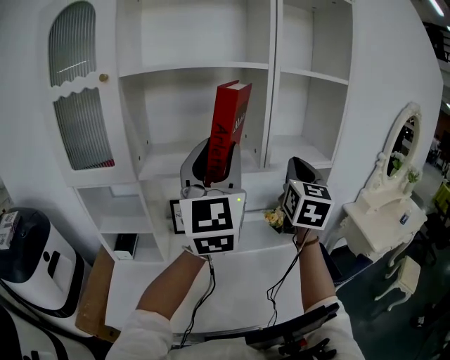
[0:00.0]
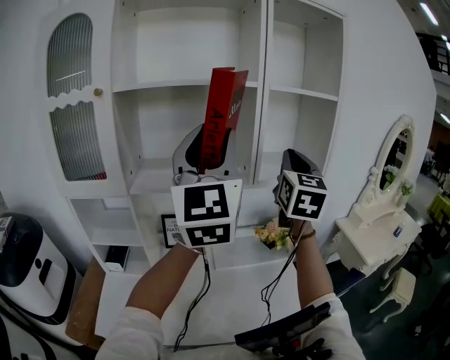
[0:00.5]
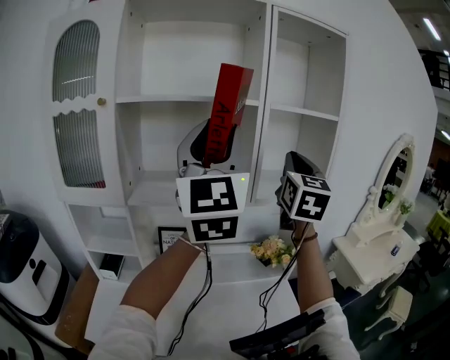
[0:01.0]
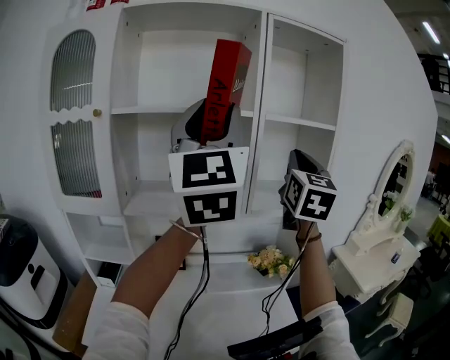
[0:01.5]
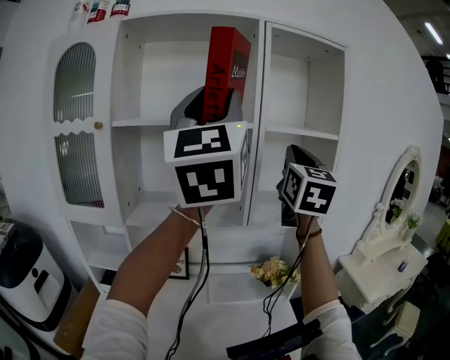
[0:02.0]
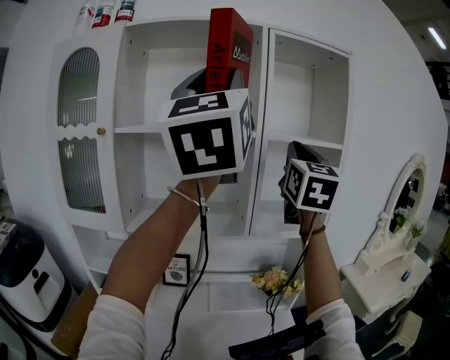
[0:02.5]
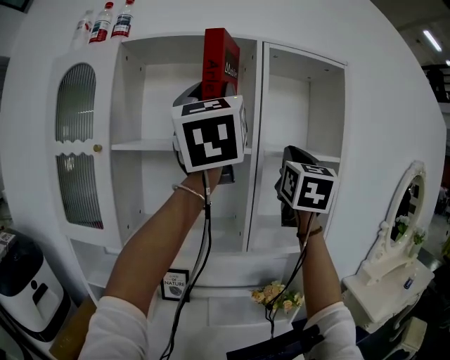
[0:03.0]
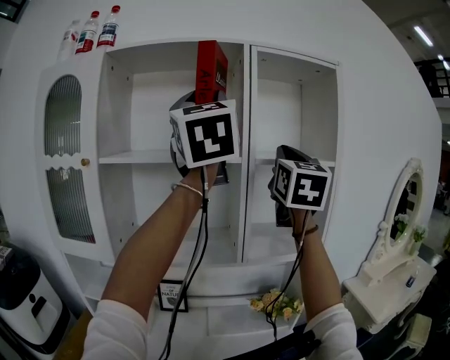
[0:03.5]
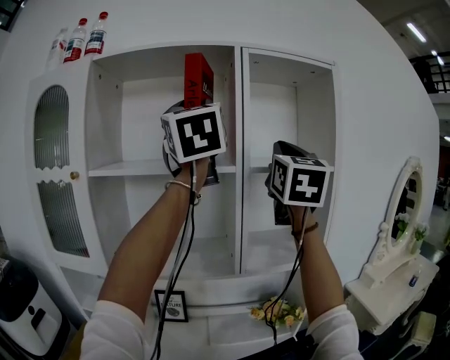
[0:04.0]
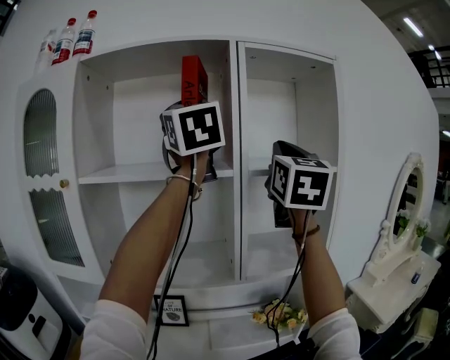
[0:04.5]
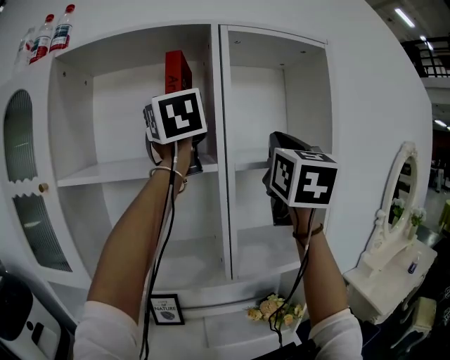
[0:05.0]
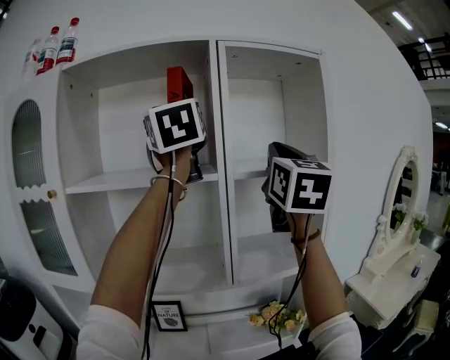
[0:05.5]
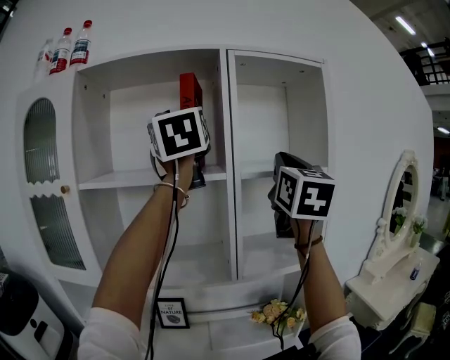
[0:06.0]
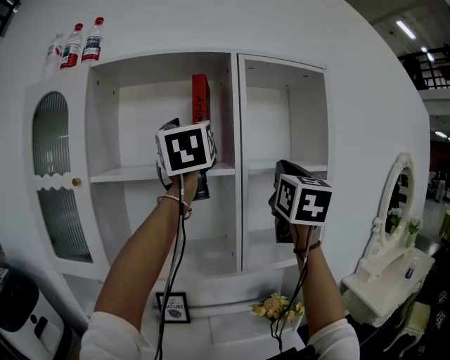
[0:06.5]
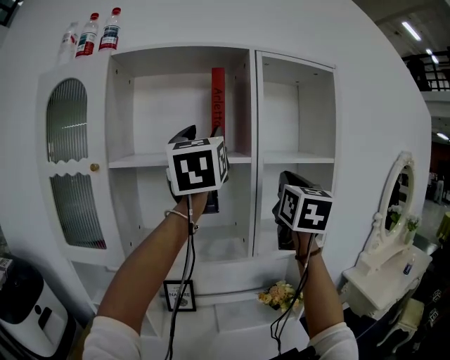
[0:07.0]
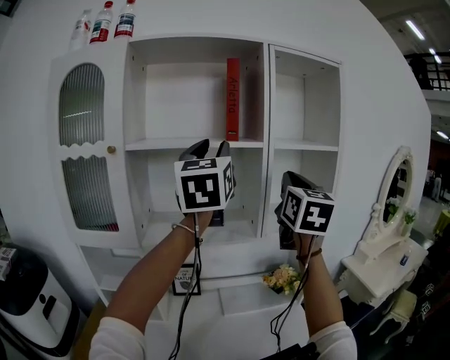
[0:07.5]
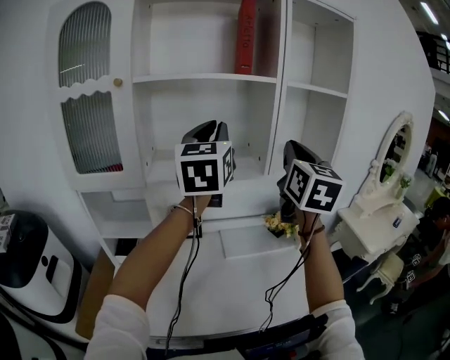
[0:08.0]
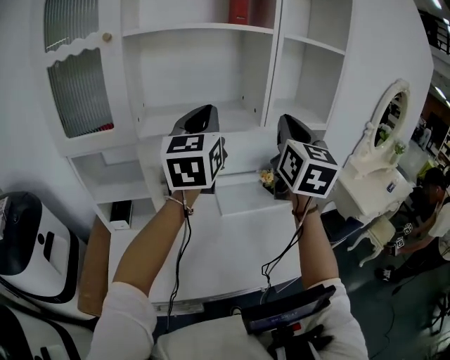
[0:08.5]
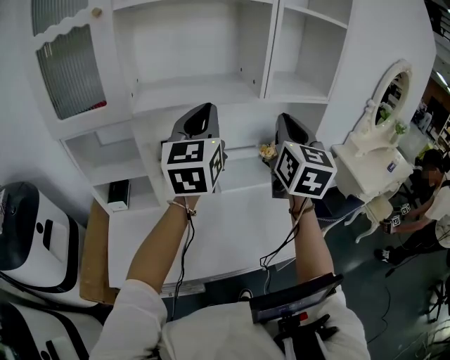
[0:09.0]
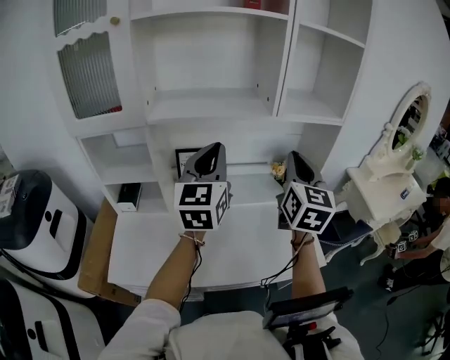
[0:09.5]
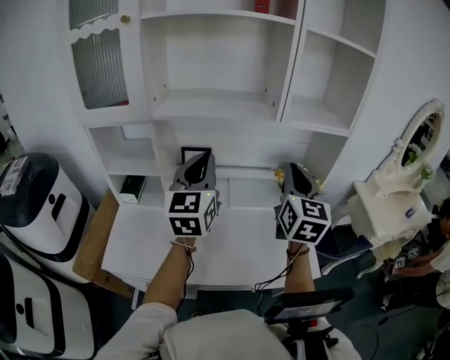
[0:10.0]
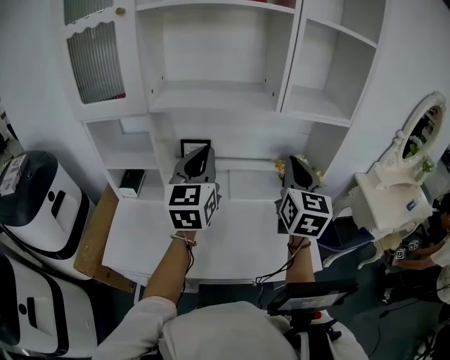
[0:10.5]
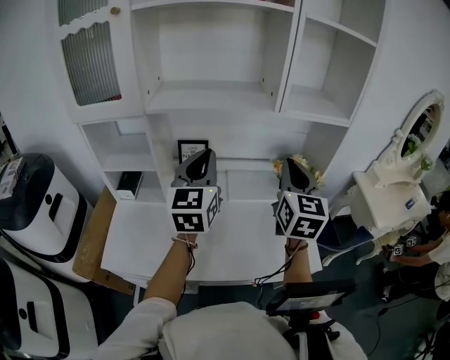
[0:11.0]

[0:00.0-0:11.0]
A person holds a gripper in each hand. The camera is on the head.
0:00.0 to 0:02.0: The two grippers go about 20 cm upward.
0:02.0 to 0:03.5: The right gripper is displaced upward by roughly 5 cm. The left gripper heads forward and upward, covering about 10 cm.
0:03.5 to 0:05.5: The left gripper travels forward by roughly 10 cm.
0:05.5 to 0:07.5: The right gripper moves downward, backward and to the left, approximately 15 cm, while the left gripper heads downward and backward, covering approximately 20 cm.
0:07.5 to 0:09.0: The right gripper heads downward and backward, covering some 20 cm. The left gripper shifts about 25 cm downward, and closes up.
0:09.0 to 0:11.0: The two grippers go about 10 cm downward.

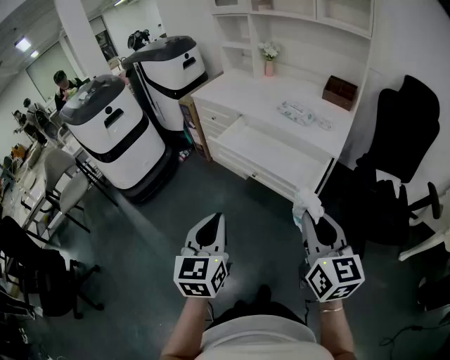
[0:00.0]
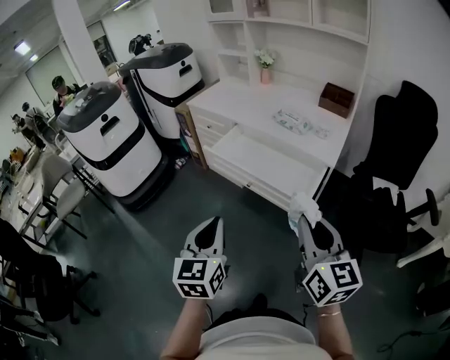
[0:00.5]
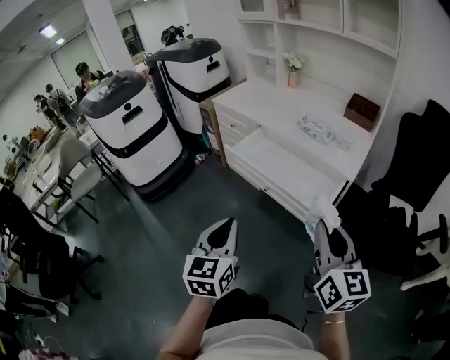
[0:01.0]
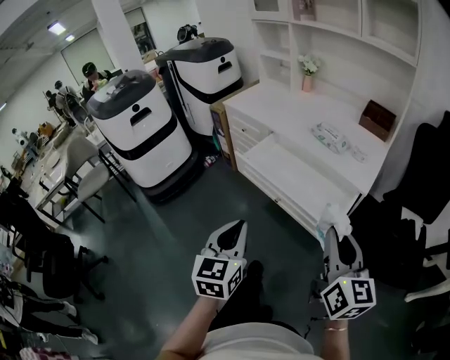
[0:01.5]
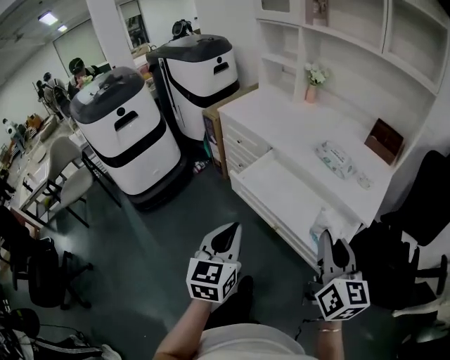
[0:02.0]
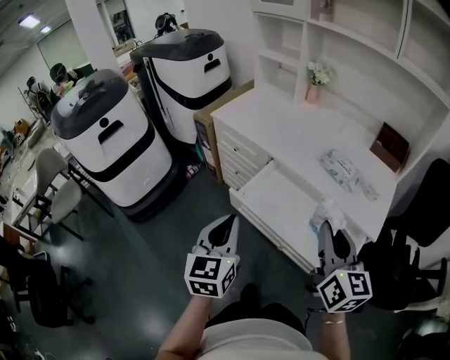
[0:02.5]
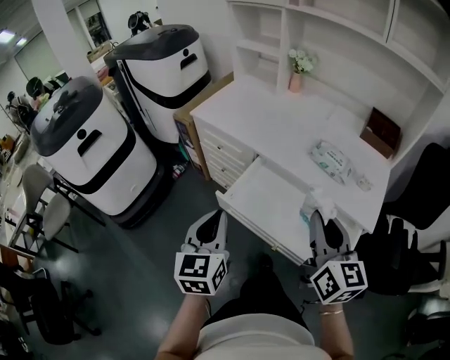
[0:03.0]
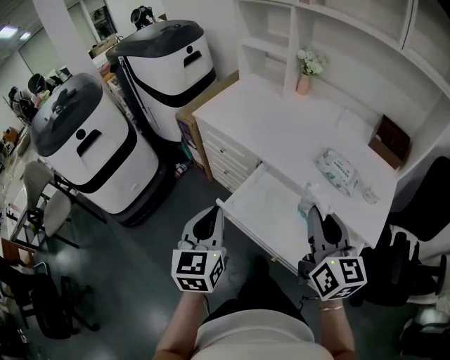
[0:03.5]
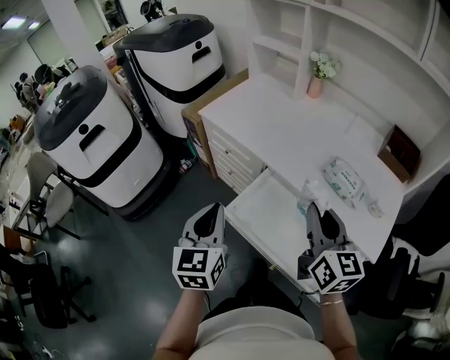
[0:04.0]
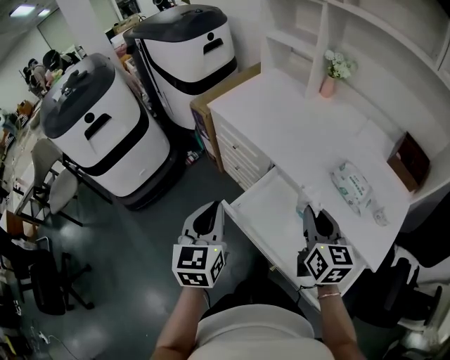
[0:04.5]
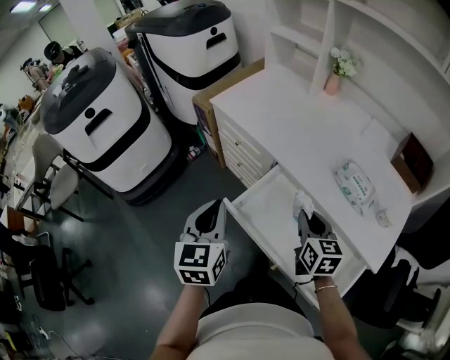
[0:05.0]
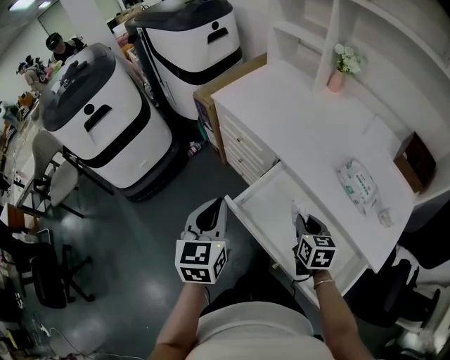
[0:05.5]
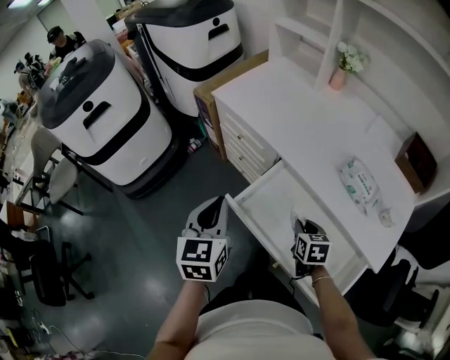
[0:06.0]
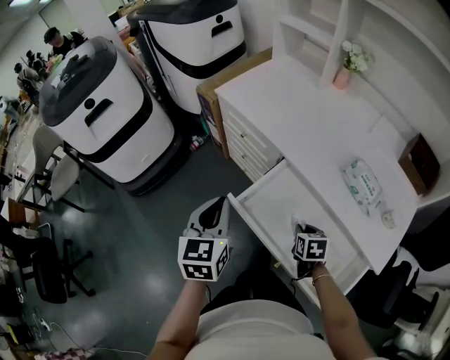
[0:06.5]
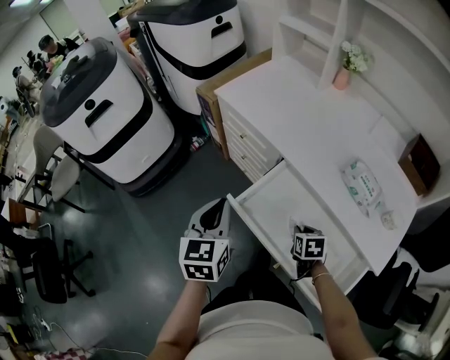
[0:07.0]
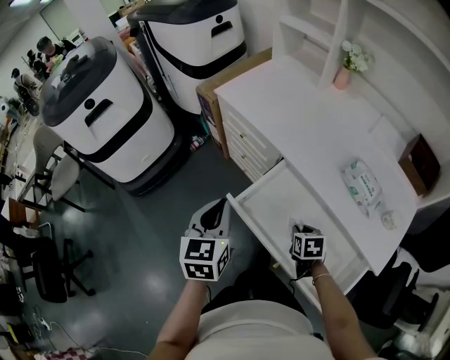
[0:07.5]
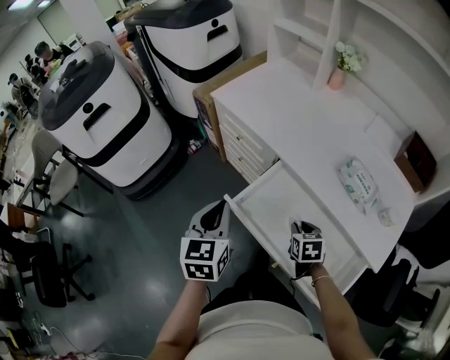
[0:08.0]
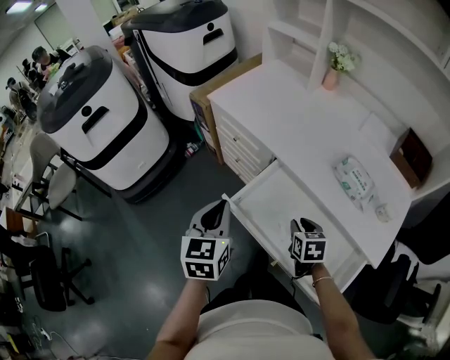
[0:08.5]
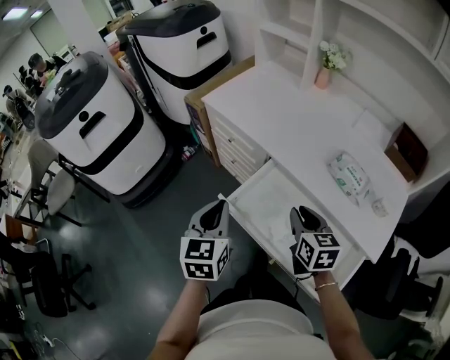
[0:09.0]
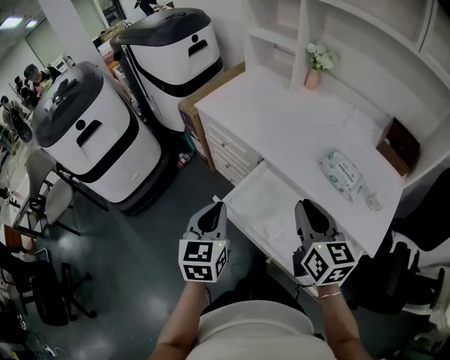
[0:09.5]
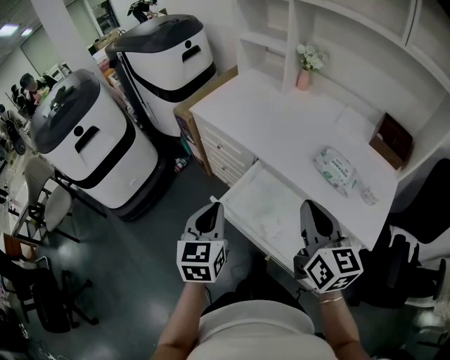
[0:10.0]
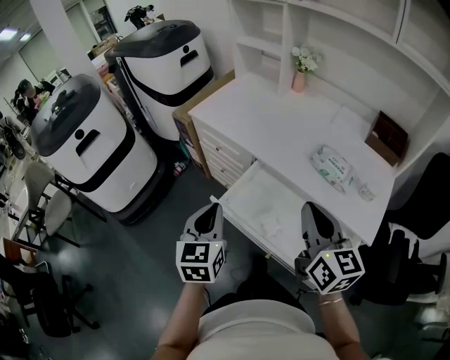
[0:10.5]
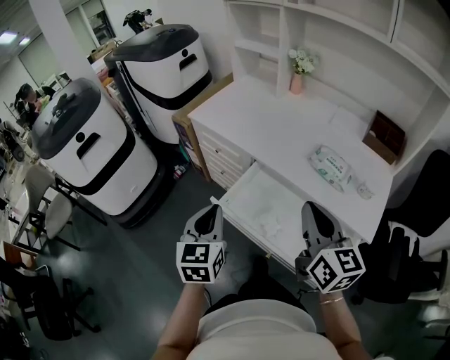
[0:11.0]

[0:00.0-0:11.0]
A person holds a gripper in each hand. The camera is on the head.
0:00.0 to 0:02.0: The two grippers go about 20 cm forward.
0:02.0 to 0:03.5: Both grippers travel together forward, some 20 cm.
0:03.5 to 0:05.5: The left gripper ends up some 5 cm from where it was, while the right gripper heads downward, covering roughly 25 cm, and points its fingers some 30 degrees further downward.
0:05.5 to 0:07.5: The right gripper heads downward, covering some 10 cm, and turns by some 20 degrees.
0:07.5 to 0:09.0: The right gripper heads upward, covering roughly 15 cm, and turns by some 30 degrees.
0:09.0 to 0:11.0: The right gripper moves upward and backward, approximately 15 cm, swivels approximately 30 degrees, and closes up.

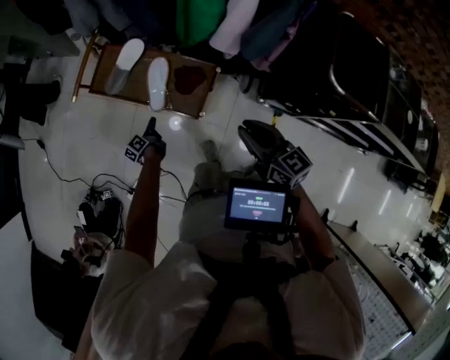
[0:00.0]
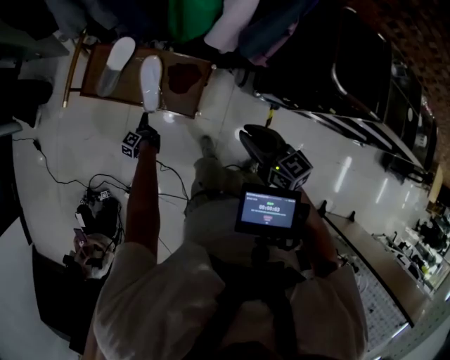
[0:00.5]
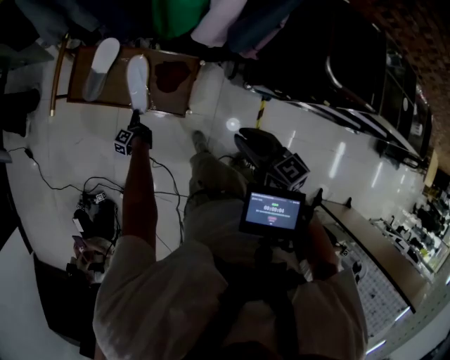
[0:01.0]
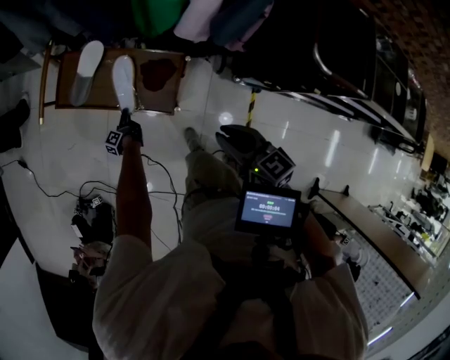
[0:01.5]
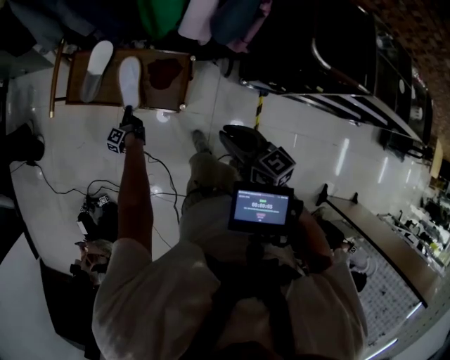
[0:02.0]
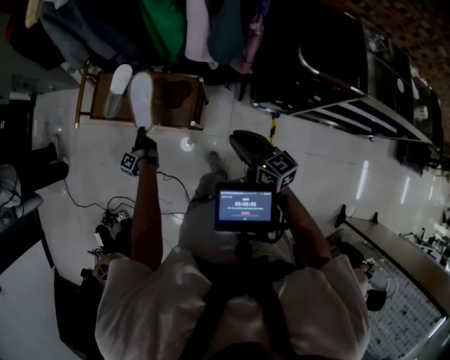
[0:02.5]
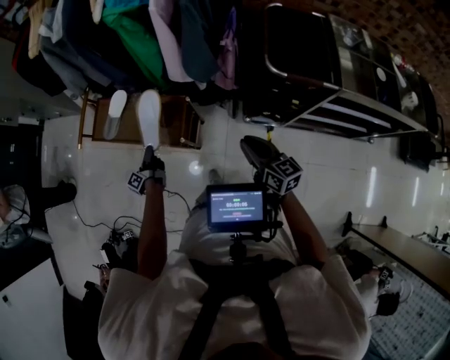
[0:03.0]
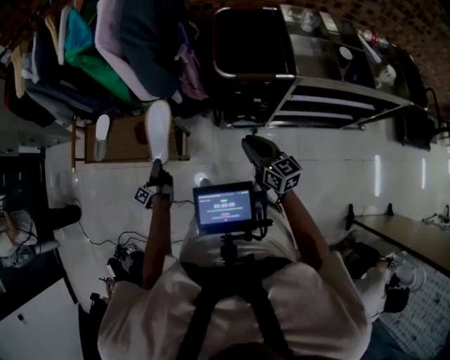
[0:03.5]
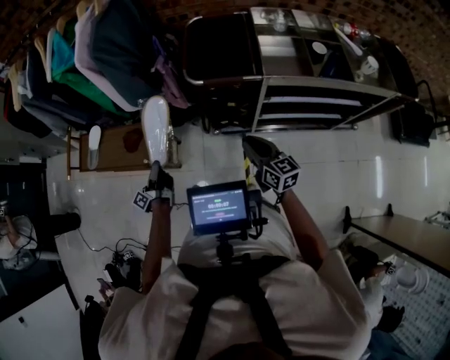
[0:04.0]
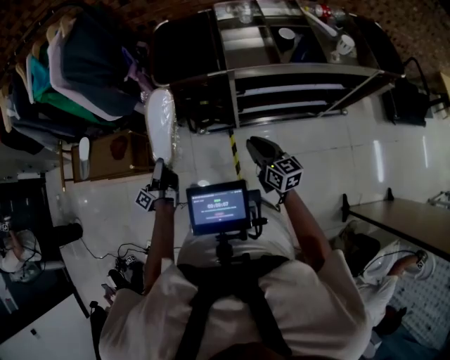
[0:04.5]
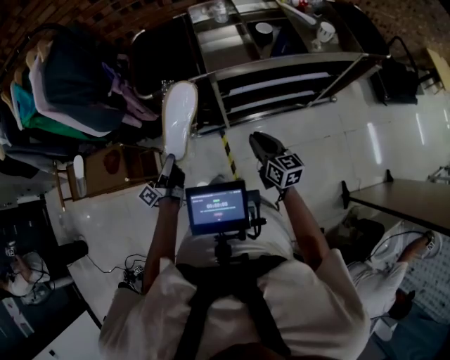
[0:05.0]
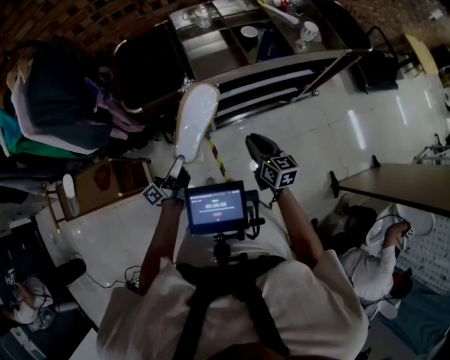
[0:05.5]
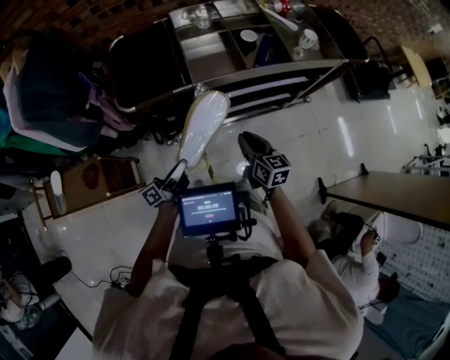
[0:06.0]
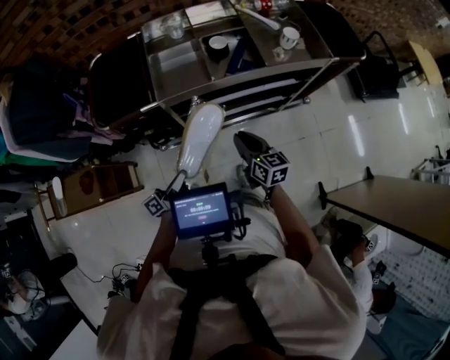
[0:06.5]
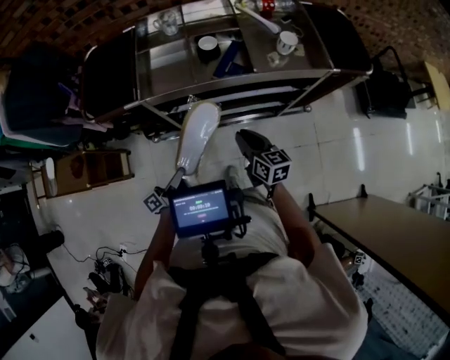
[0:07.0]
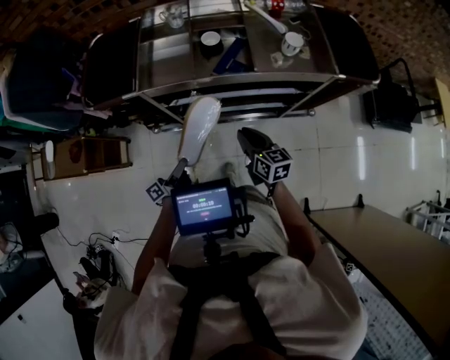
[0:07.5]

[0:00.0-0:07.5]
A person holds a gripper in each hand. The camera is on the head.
0:00.0 to 0:02.0: The right gripper is displaced downward by roughly 5 cm.
0:02.0 to 0:04.0: The right gripper moves roughly 50 cm, and changes its angle by some 30 degrees.
0:04.0 to 0:05.5: The right gripper changes place by some 20 cm, and changes its angle by approximately 30 degrees.
0:05.5 to 0:07.5: The right gripper moves roughly 25 cm.
